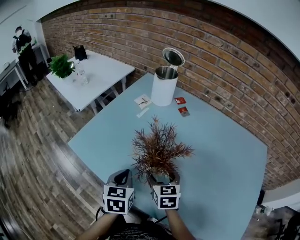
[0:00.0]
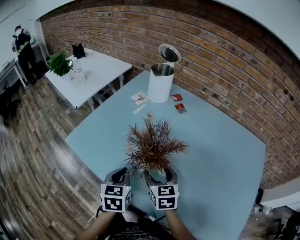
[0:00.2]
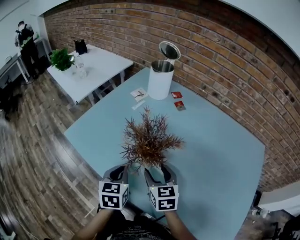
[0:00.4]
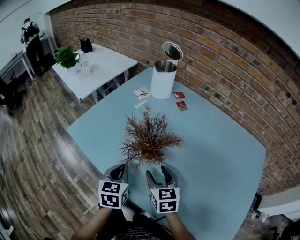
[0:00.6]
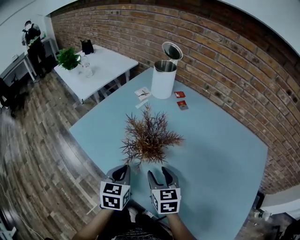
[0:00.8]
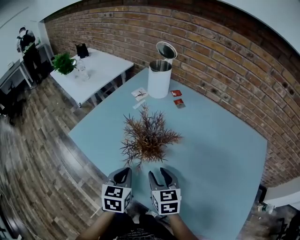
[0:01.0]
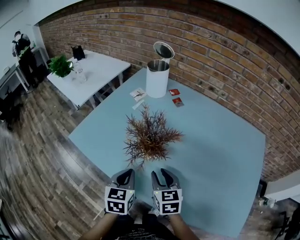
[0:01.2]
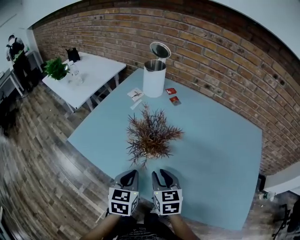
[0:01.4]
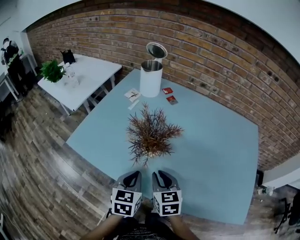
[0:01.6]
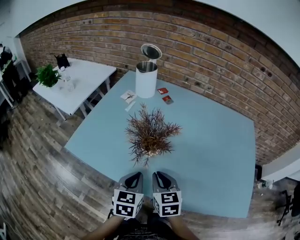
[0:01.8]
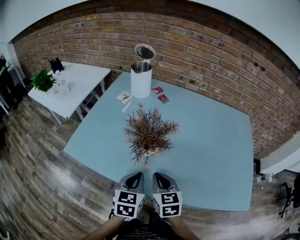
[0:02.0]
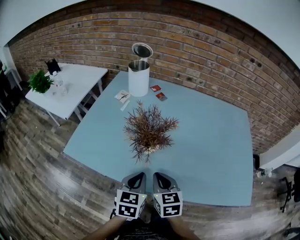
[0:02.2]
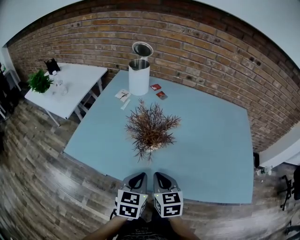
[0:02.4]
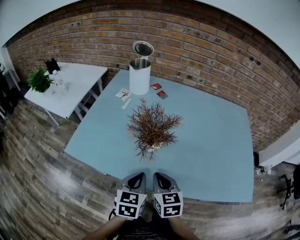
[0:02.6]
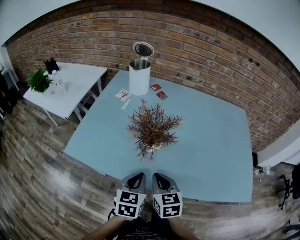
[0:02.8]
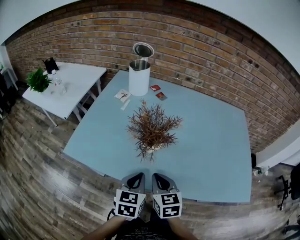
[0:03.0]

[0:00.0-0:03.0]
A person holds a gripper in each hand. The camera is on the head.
0.0 to 1.6 s: The right gripper is displaced backward by some 10 cm, and closes up, while the left gripper moves backward and to the right, some 10 cm.
1.6 to 3.0 s: The right gripper changes place by approximately 5 cm.

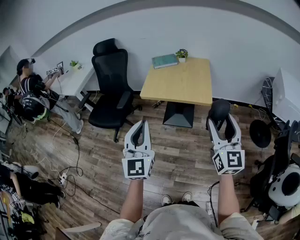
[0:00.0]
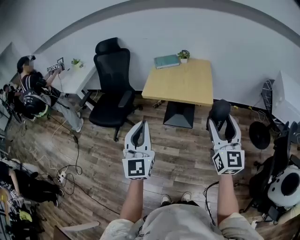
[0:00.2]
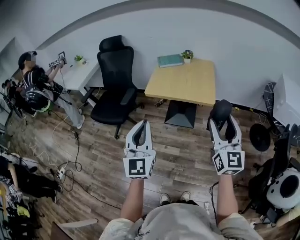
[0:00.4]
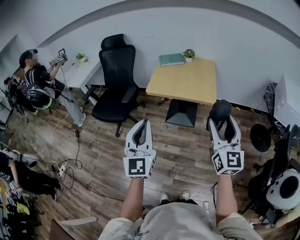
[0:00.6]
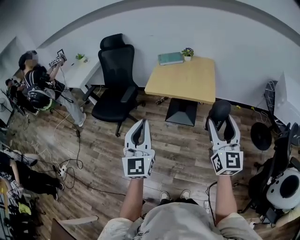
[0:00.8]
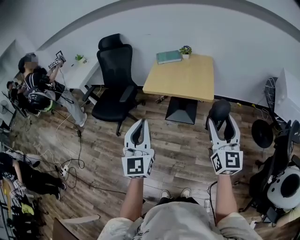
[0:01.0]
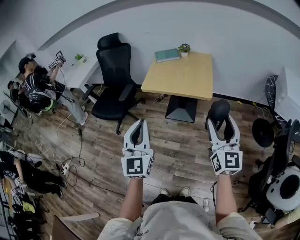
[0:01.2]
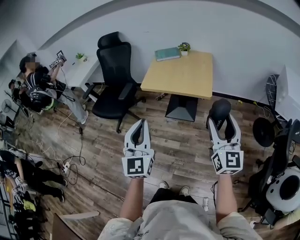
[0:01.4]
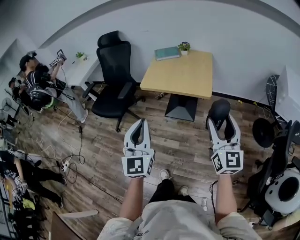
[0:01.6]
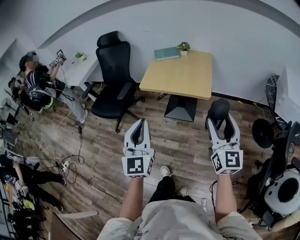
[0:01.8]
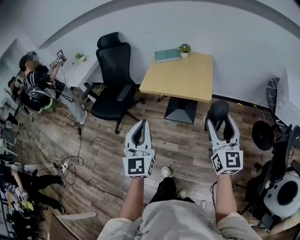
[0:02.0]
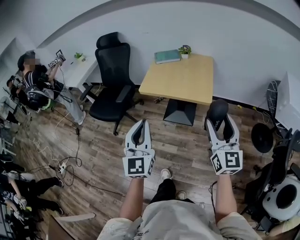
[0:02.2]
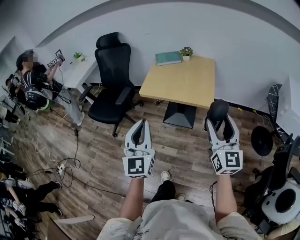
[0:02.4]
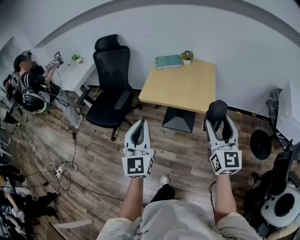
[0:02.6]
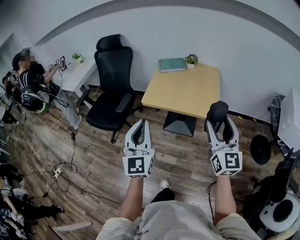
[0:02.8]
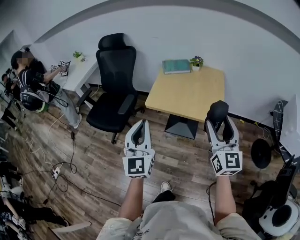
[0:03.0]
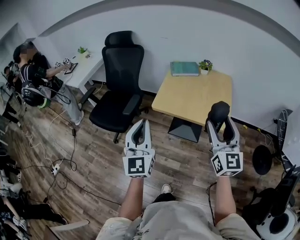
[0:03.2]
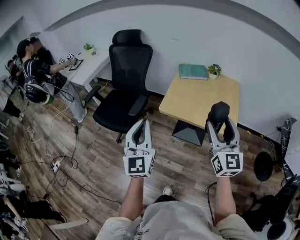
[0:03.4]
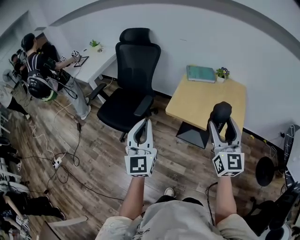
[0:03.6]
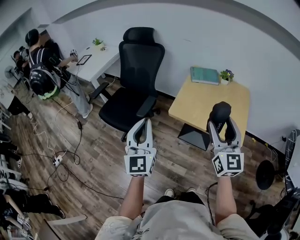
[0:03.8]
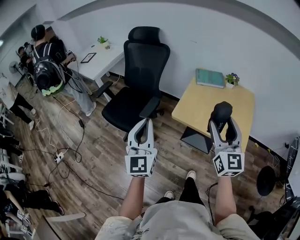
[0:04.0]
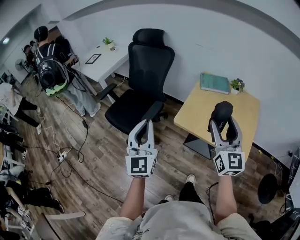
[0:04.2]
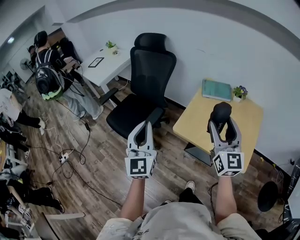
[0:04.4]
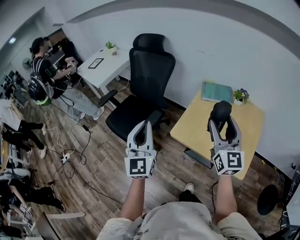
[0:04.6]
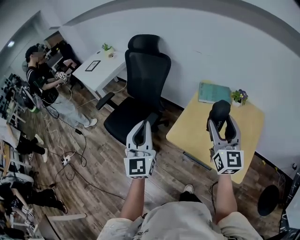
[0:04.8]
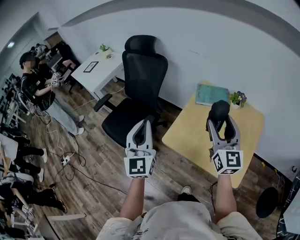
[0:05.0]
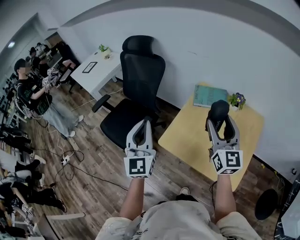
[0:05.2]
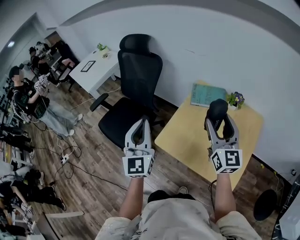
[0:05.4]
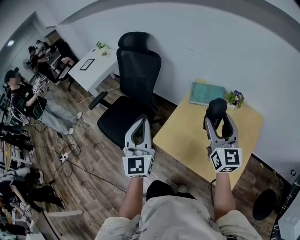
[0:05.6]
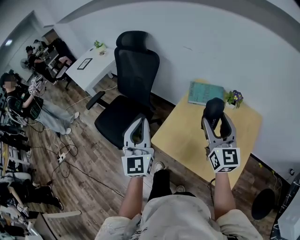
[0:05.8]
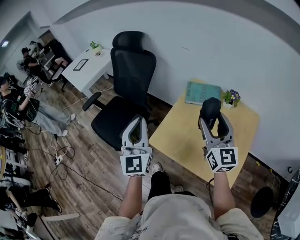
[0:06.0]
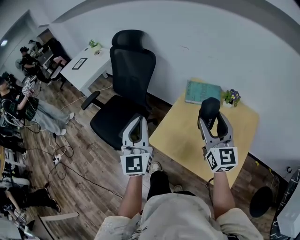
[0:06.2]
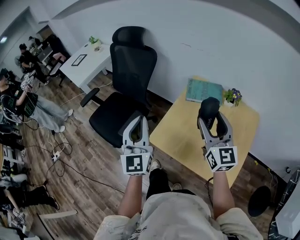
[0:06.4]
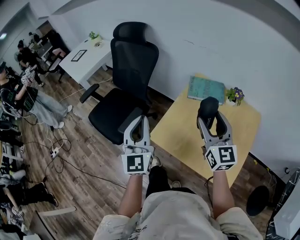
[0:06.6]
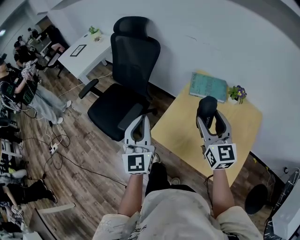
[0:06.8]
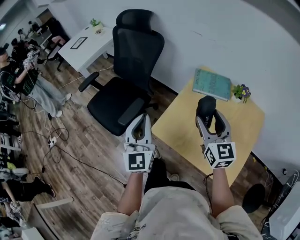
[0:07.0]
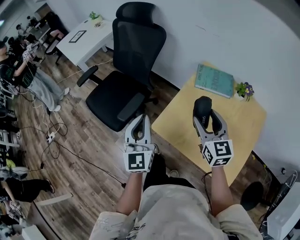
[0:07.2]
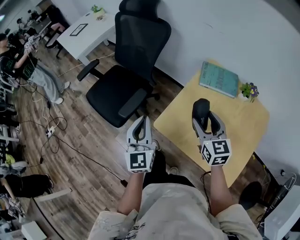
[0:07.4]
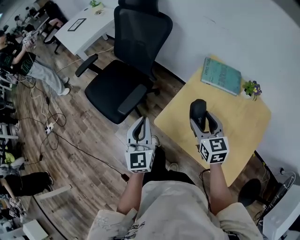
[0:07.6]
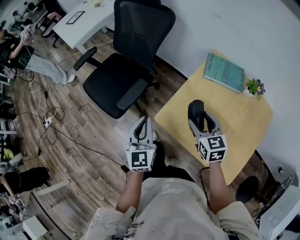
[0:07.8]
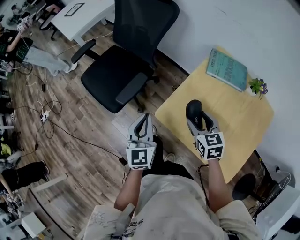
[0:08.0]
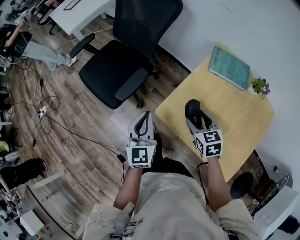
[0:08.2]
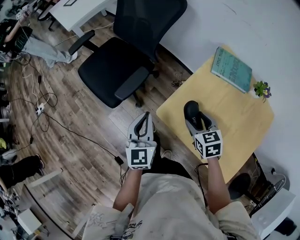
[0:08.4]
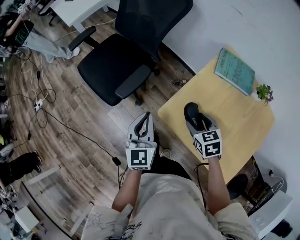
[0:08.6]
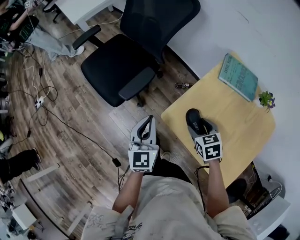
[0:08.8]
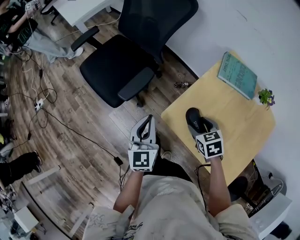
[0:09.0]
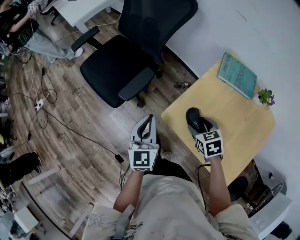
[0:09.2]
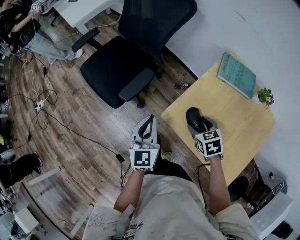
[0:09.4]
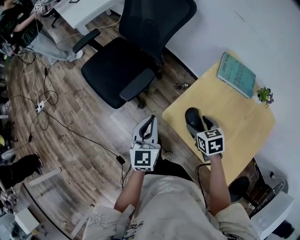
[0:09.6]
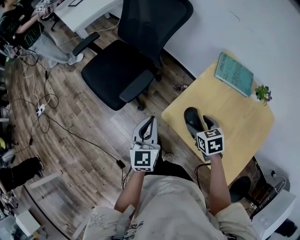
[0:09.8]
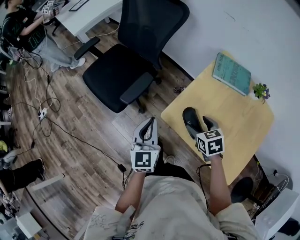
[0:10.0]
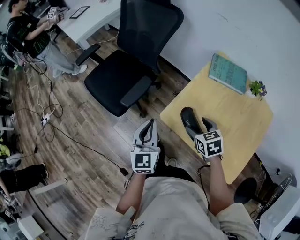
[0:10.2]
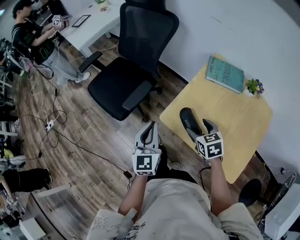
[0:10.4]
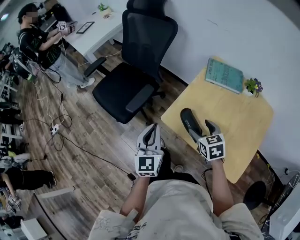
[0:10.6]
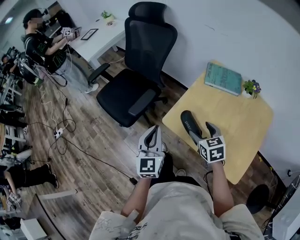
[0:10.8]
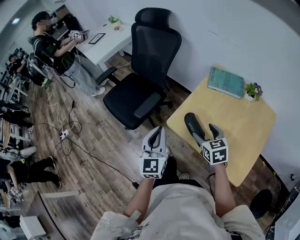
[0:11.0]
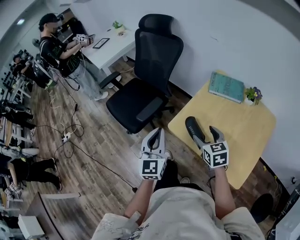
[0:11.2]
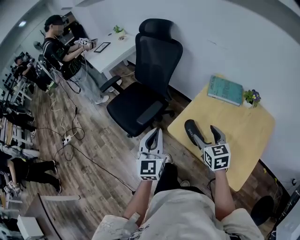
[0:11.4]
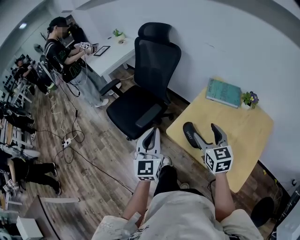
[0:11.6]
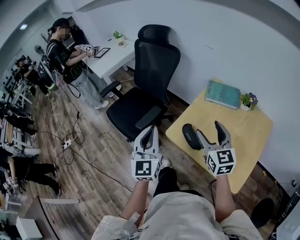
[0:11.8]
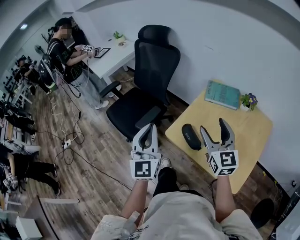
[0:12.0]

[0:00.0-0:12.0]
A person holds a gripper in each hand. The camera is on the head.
0.0 to 1.6 s: The two grippers go about 5 cm to the right.
1.6 to 3.0 s: The two grippers go some 20 cm forward and to the left.
3.0 to 4.4 s: The left gripper shifts some 25 cm forward and to the left. Meanwhile the right gripper shifts about 30 cm forward.
4.4 to 6.0 s: The two grippers go approximately 20 cm forward and to the right.
6.0 to 7.6 s: The grippers both shift downward and to the left by about 20 cm. The right gripper tilts its fingers some 30 degrees downward.
7.6 to 9.0 s: The left gripper goes some 10 cm downward; the right gripper heads downward, covering approximately 15 cm, and tips its fingers downward by about 30 degrees.
9.0 to 10.4 s: The left gripper moves upward and backward, some 10 cm; the right gripper heads upward, covering approximately 5 cm.
10.4 to 12.0 s: Both grippers travel together upward, about 20 cm. The right gripper points its fingers roughly 40 degrees further upward.

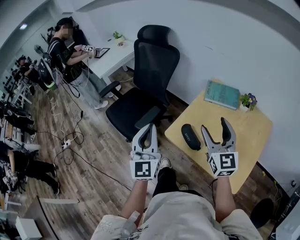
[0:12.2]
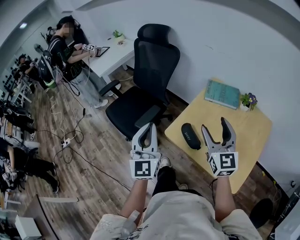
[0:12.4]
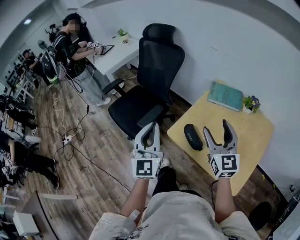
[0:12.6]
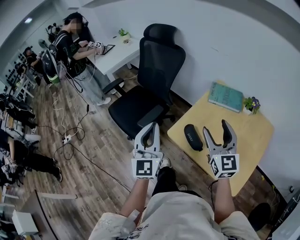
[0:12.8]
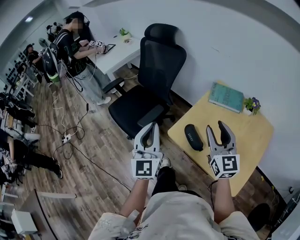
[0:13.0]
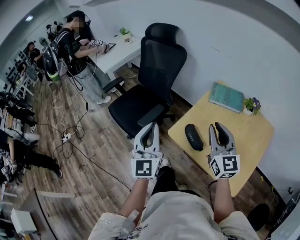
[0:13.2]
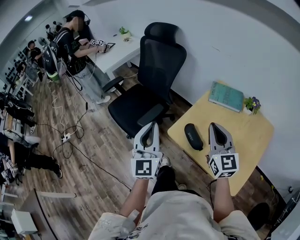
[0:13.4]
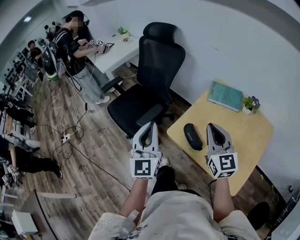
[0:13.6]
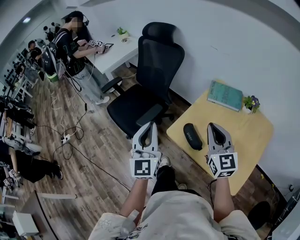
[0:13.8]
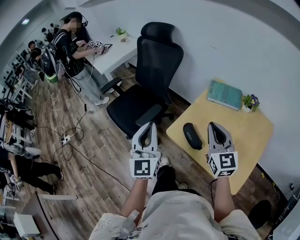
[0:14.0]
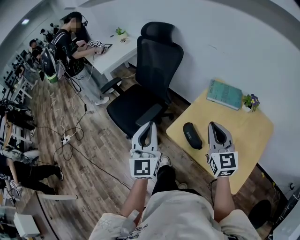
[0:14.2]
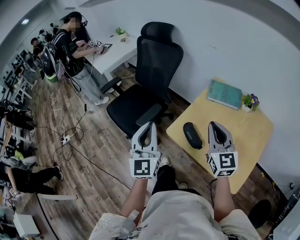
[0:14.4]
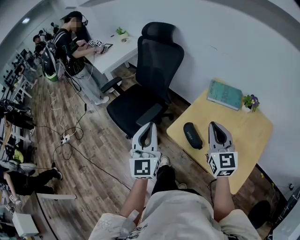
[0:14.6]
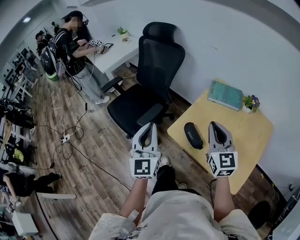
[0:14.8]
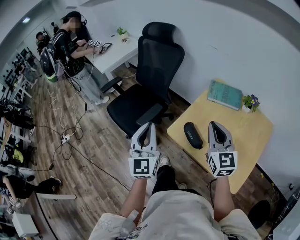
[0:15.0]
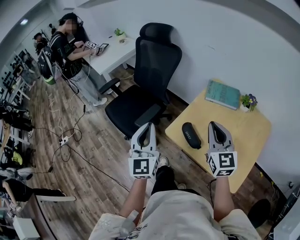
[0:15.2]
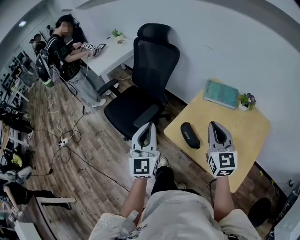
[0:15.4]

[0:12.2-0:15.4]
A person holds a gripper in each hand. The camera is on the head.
12.2 to 13.8 s: The right gripper closes its fingers.
13.8 to 15.4 s: The grippers move only a little.

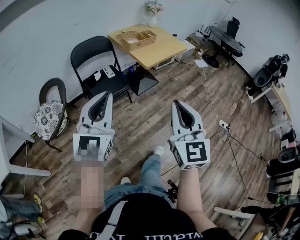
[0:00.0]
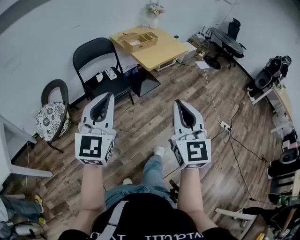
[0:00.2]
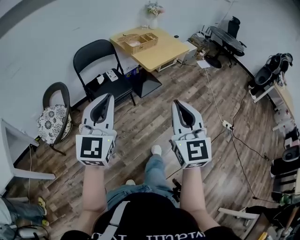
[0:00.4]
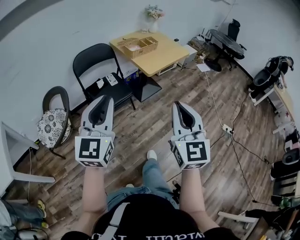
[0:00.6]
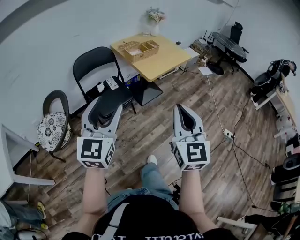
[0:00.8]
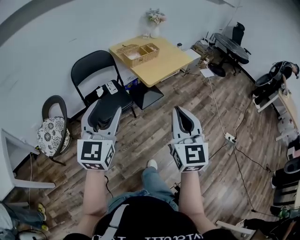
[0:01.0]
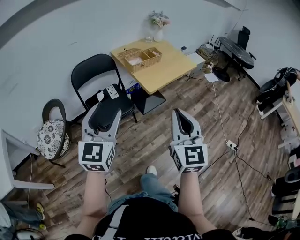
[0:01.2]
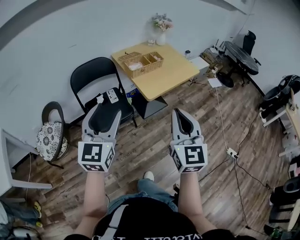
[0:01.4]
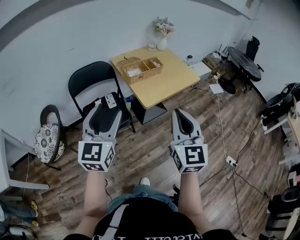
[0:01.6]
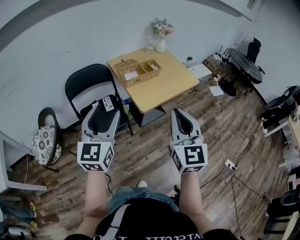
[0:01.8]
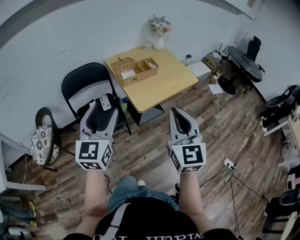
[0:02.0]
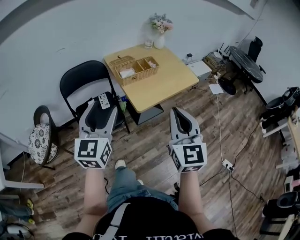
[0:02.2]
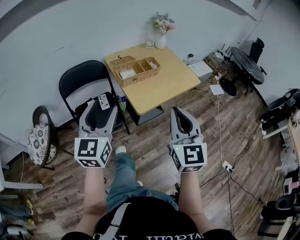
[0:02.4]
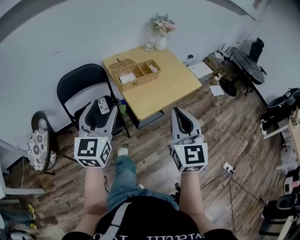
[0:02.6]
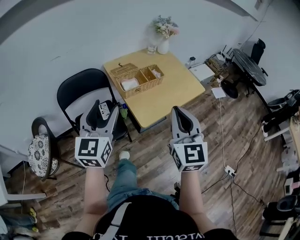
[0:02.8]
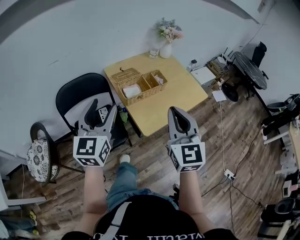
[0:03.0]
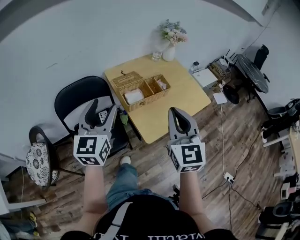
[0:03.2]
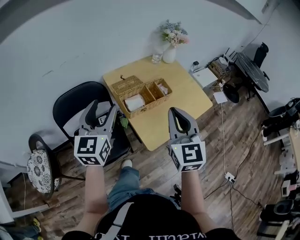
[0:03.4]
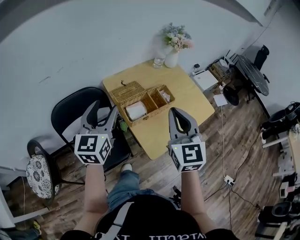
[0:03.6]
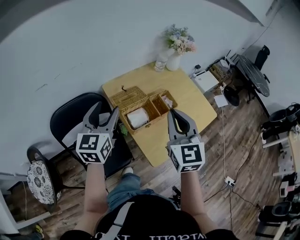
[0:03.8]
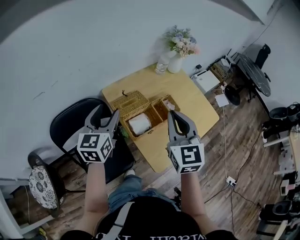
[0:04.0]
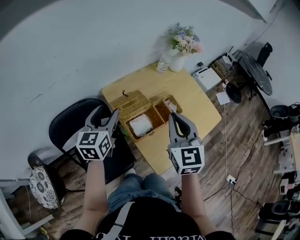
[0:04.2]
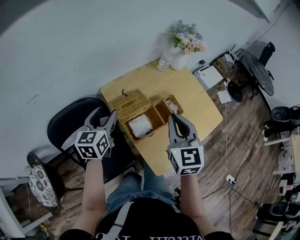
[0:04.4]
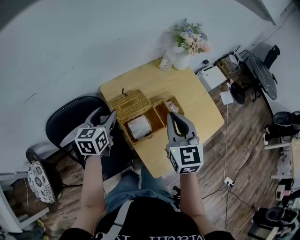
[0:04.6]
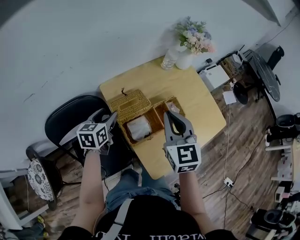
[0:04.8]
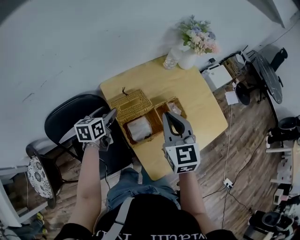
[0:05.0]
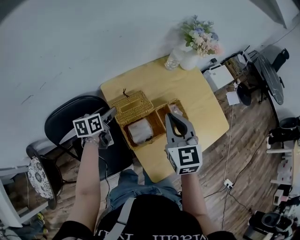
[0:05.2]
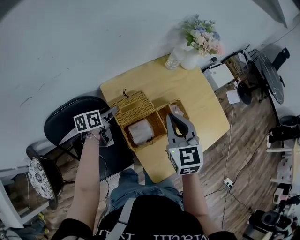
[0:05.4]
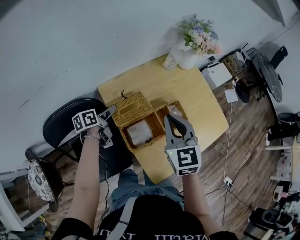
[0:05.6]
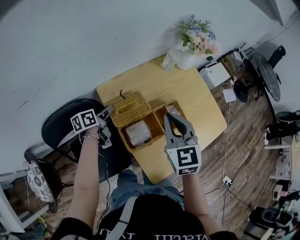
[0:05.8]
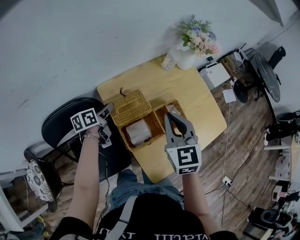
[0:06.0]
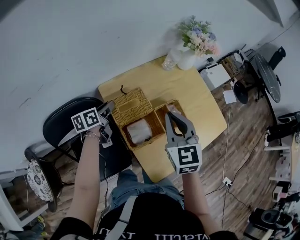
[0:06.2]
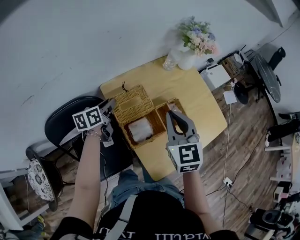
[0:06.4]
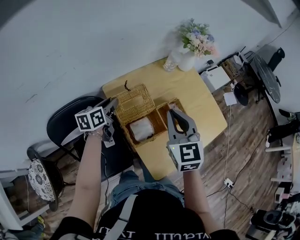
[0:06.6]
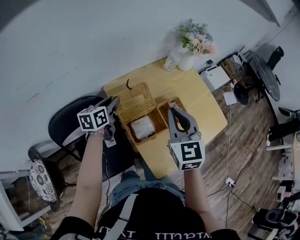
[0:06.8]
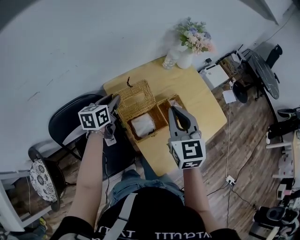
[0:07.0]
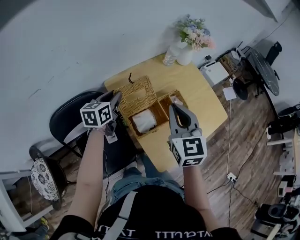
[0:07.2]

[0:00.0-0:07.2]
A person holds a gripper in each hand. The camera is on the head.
0.0 to 1.4 s: The two grippers go roughly 25 cm forward. The left gripper opens its fingers.
1.4 to 2.8 s: The two grippers go approximately 25 cm forward.
2.8 to 4.4 s: Both grippers travel together forward, about 35 cm. The left gripper changes its angle by some 20 degrees.
4.4 to 5.8 s: The left gripper travels downward and forward by about 20 cm, rotates around the line of its fingers by about 40 degrees, counterclockwise from behind, and closes. Meanwhile the right gripper is displaced forward by approximately 5 cm.
5.8 to 7.2 s: The right gripper travels backward by approximately 5 cm; the left gripper shifts some 10 cm upward, and swivels approximately 30 degrees.
